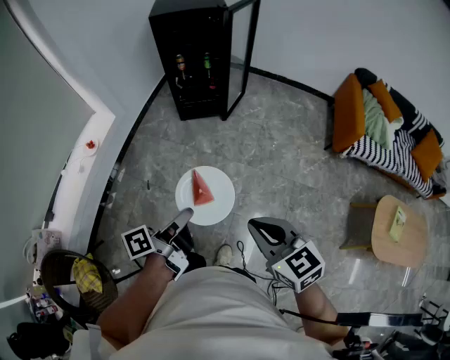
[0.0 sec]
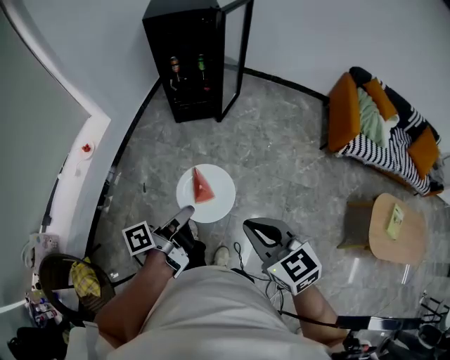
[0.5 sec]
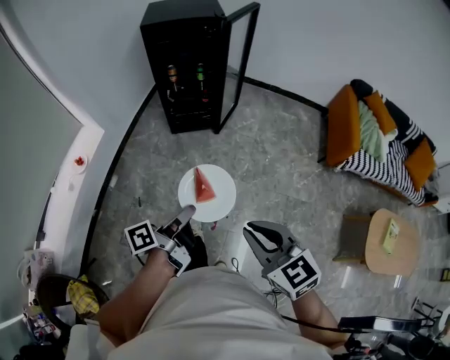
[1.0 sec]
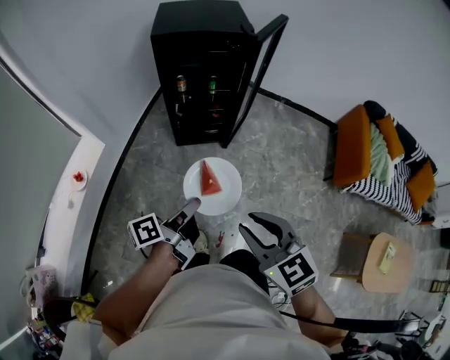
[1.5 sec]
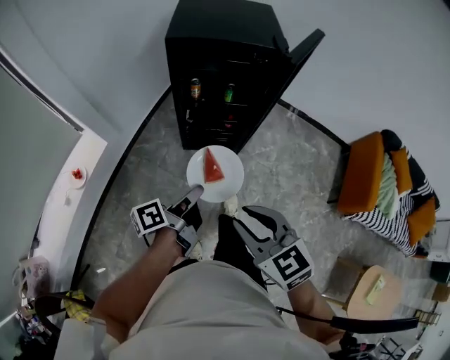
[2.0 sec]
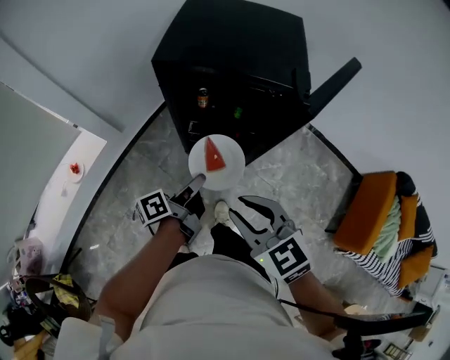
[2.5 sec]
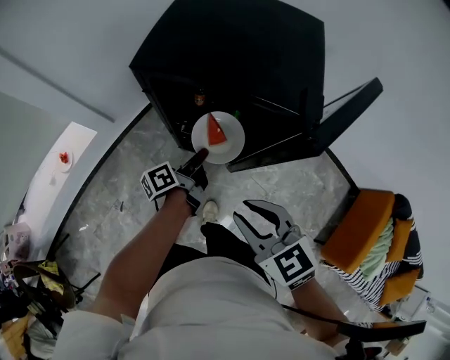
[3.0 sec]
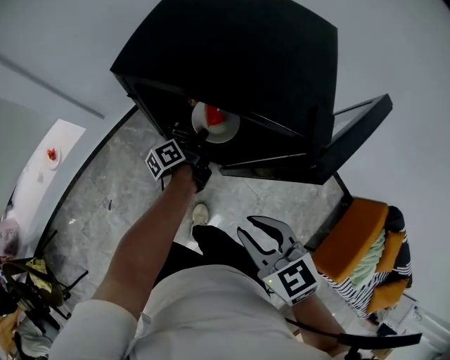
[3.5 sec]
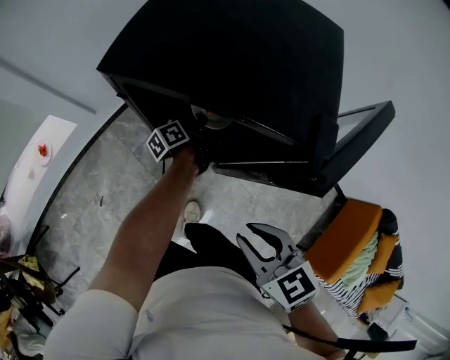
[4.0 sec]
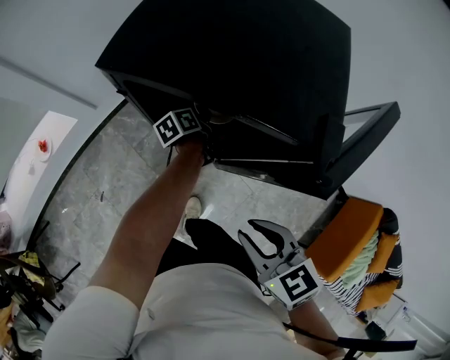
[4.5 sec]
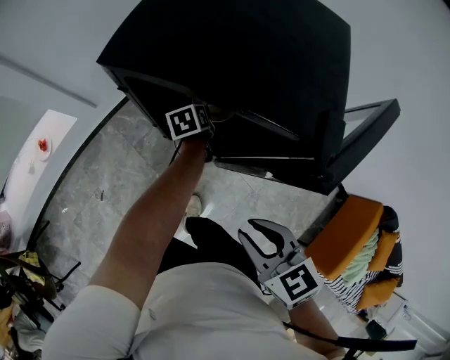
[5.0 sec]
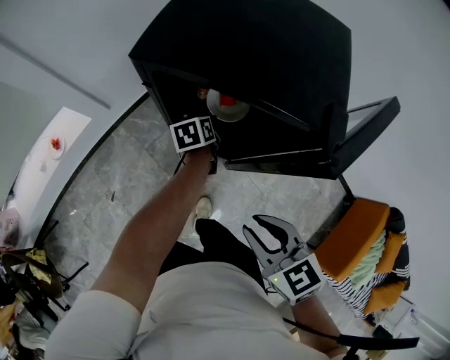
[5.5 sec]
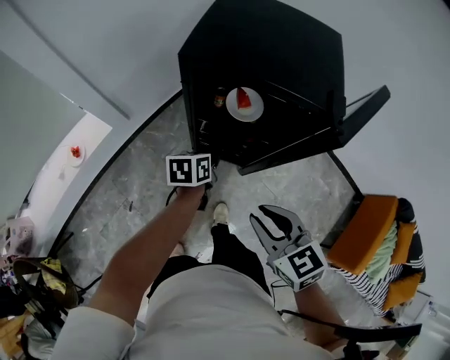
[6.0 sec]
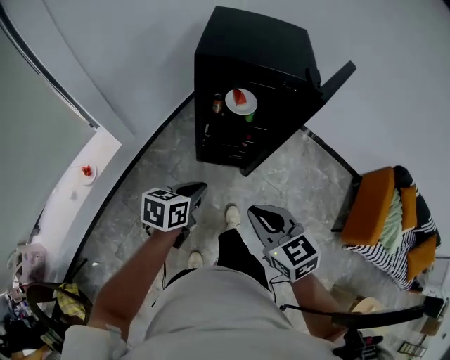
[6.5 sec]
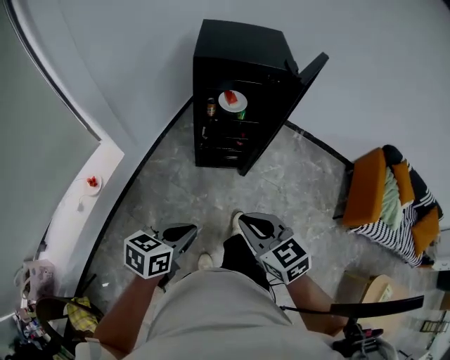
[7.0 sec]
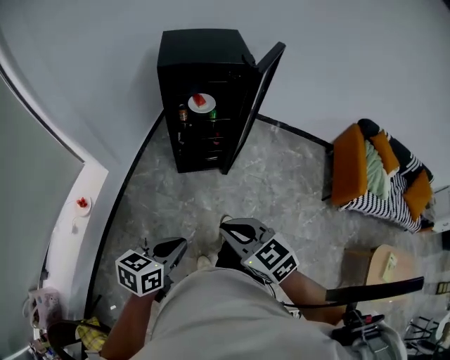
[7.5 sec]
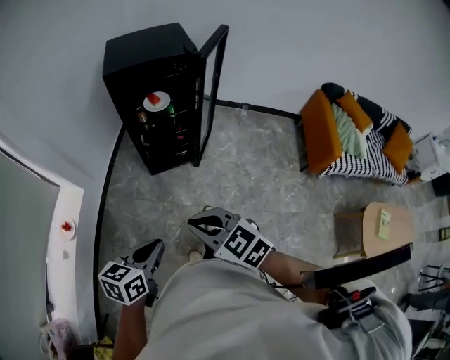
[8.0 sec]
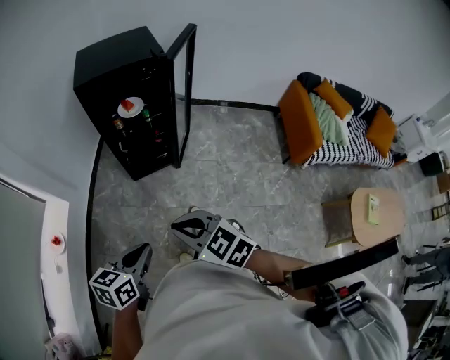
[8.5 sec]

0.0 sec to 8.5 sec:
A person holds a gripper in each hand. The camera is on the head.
0.0 sec to 2.0 sec: Both grippers are carried forward, roughly 50 cm. The right gripper opens.
2.0 sec to 4.0 sec: The left gripper heads forward, downward and to the right, covering roughly 50 cm, and turns by about 30 degrees, while the right gripper goes roughly 30 cm forward and to the right.
4.0 sec to 6.5 sec: The right gripper moves about 25 cm, while the left gripper changes place by some 50 cm, rolls clockwise, seen from behind, by about 60 degrees, and opens and closes again.
6.5 sec to 8.5 sec: The two grippers go roughly 25 cm backward.

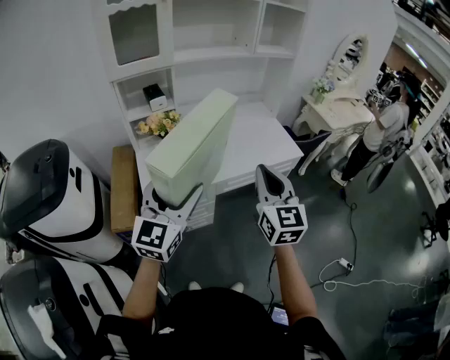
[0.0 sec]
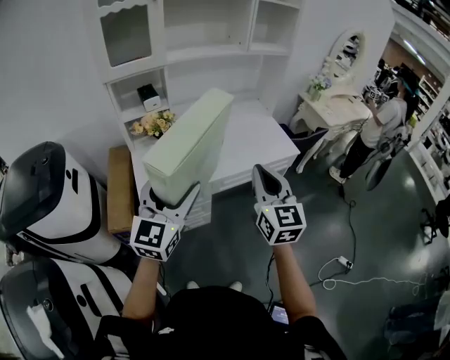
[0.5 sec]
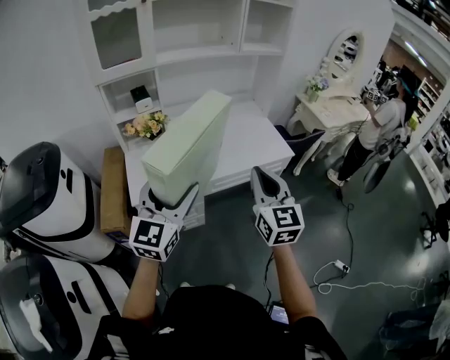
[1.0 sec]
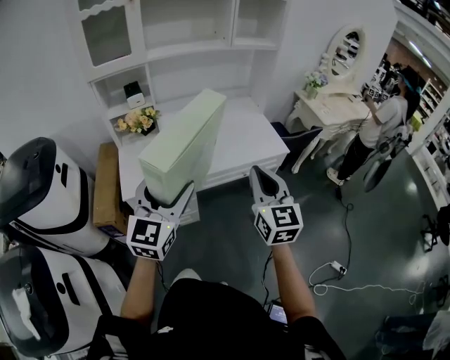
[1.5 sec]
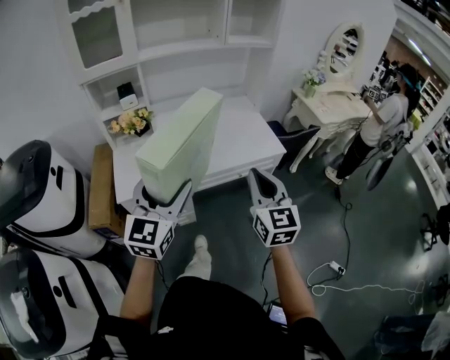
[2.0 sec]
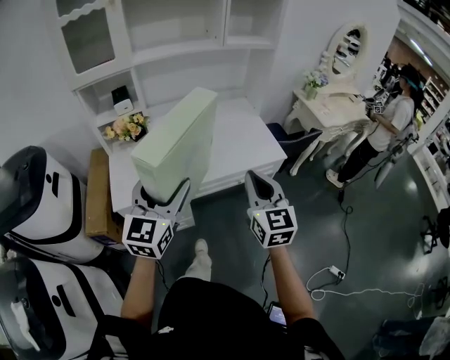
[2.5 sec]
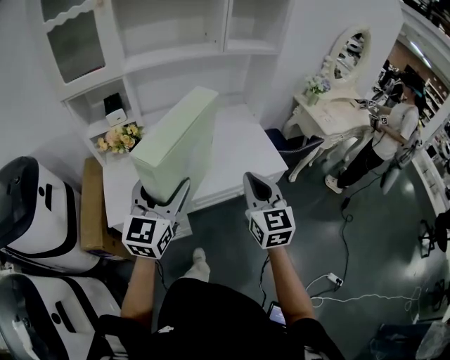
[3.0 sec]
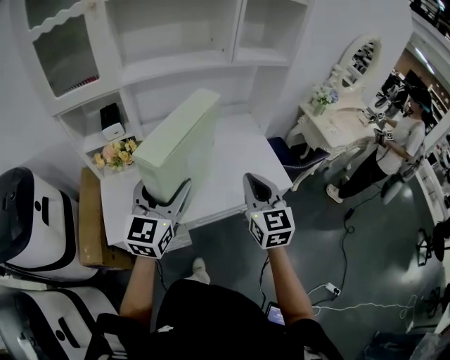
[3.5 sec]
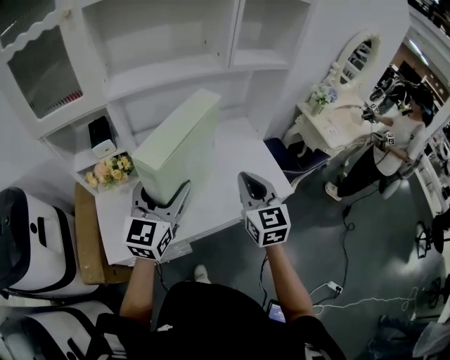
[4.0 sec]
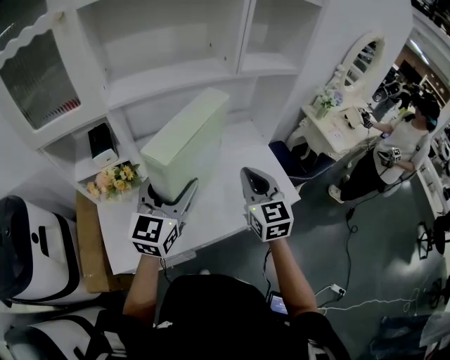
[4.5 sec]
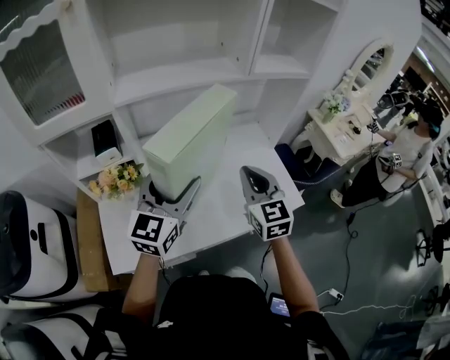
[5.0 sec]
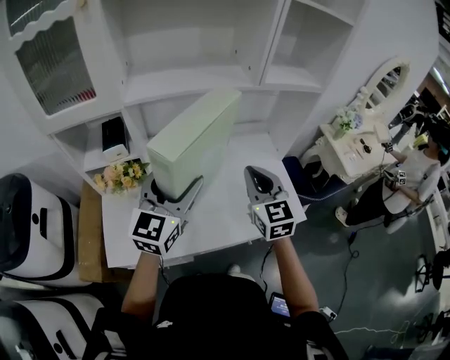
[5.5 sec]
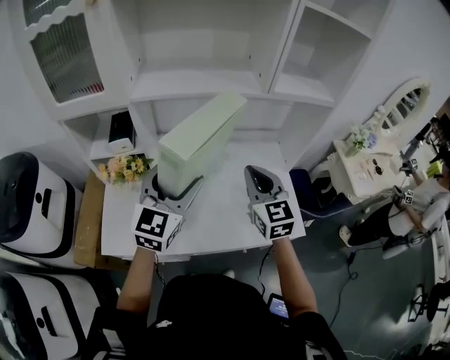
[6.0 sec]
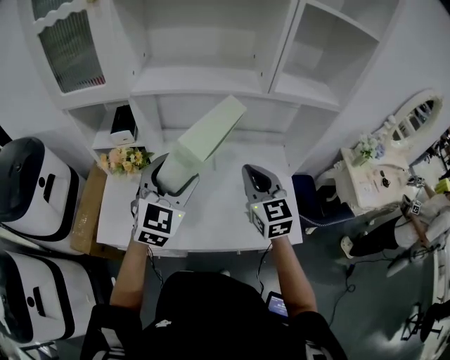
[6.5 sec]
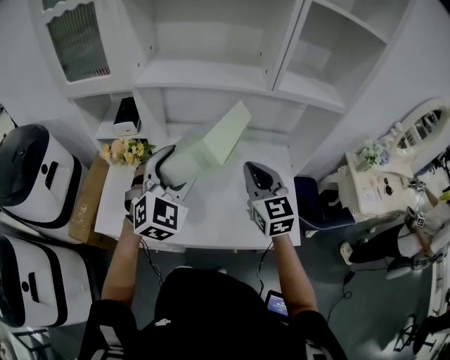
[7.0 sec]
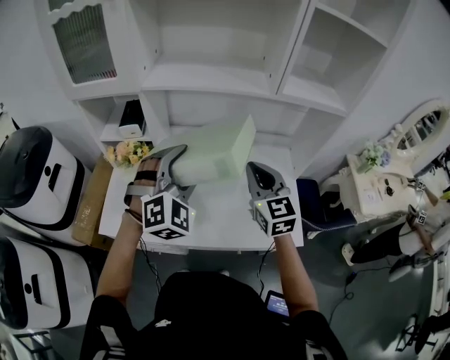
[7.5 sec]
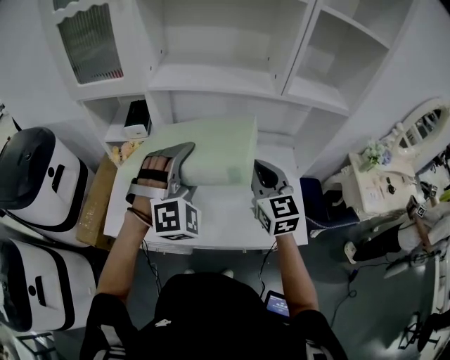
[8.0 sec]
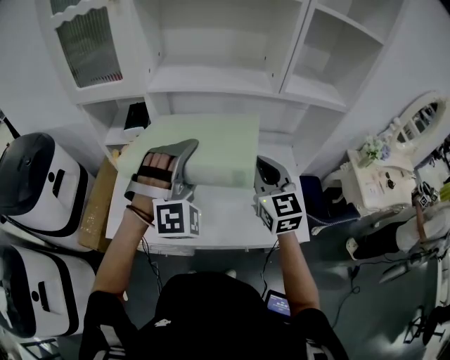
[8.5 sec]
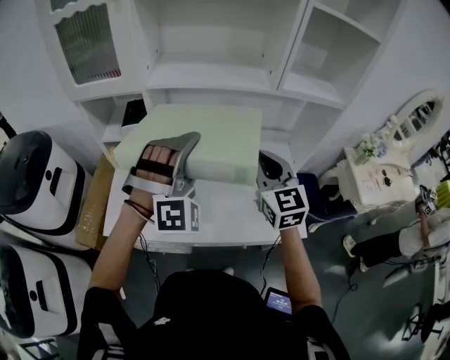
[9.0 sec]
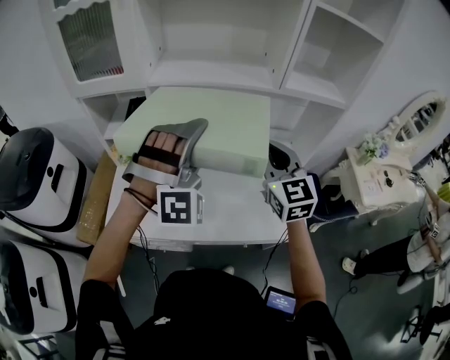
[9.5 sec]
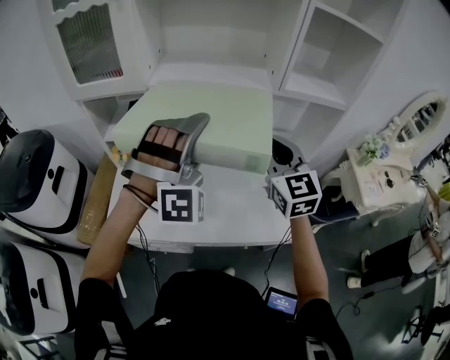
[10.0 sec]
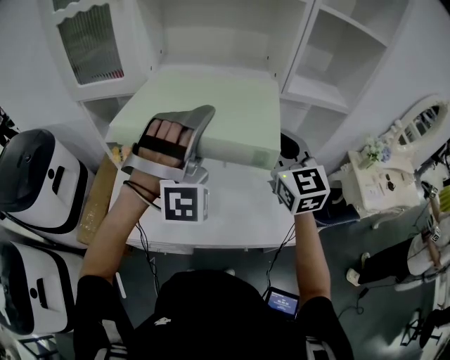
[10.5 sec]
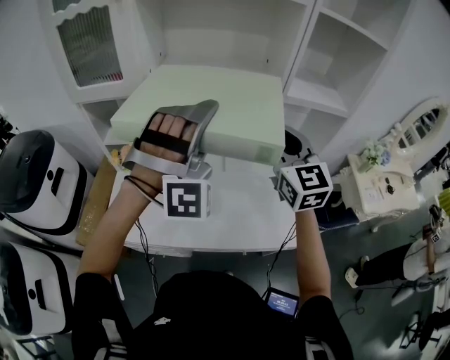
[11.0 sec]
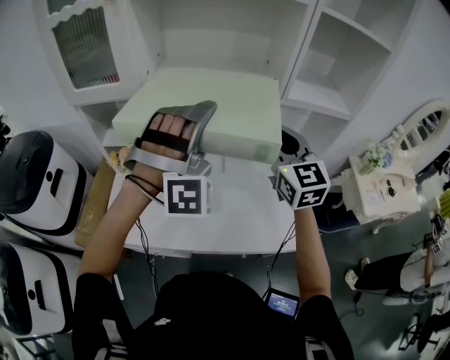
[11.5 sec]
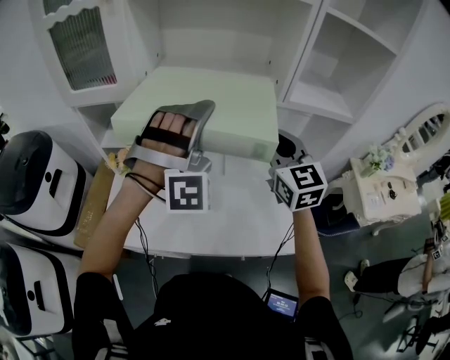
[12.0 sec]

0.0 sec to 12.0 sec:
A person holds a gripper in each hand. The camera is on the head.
0.0 sec to 2.0 sec: Both grippers move to the right, approximately 15 cm.
2.0 sec to 4.0 sec: The two grippers go approximately 30 cm forward.
4.0 sec to 6.0 sec: The two grippers go approximately 10 cm forward.
6.0 sec to 8.0 sec: The left gripper twists some 60 degrees clockwise, seen from behind.
8.0 sec to 10.0 sec: The two grippers go about 10 cm upward. The left gripper turns by about 20 degrees.
10.0 sec to 12.0 sec: Both grippers move forward, approximately 5 cm.

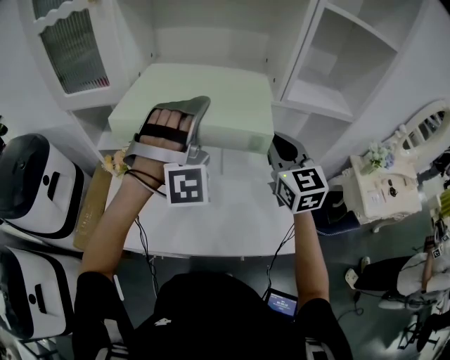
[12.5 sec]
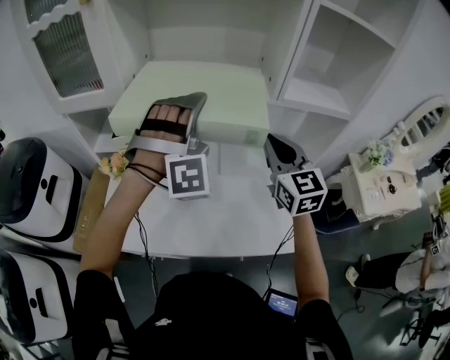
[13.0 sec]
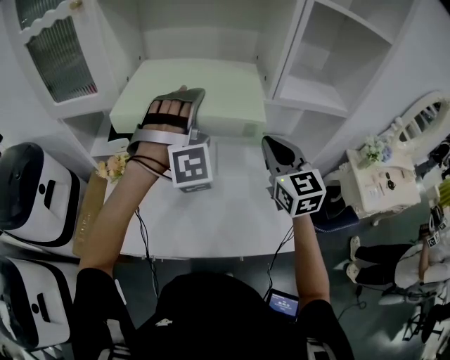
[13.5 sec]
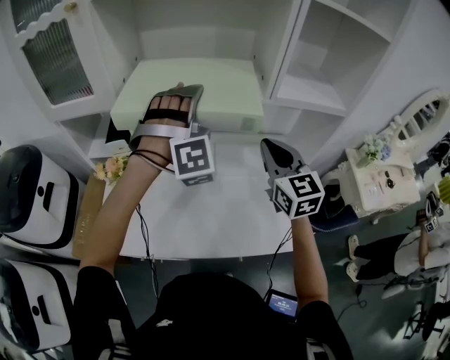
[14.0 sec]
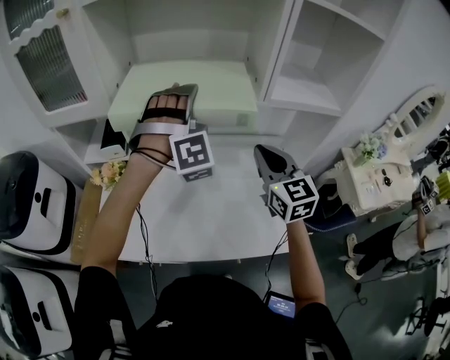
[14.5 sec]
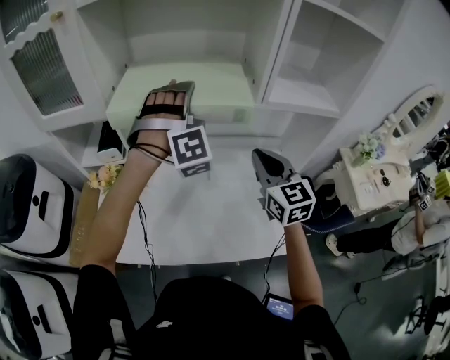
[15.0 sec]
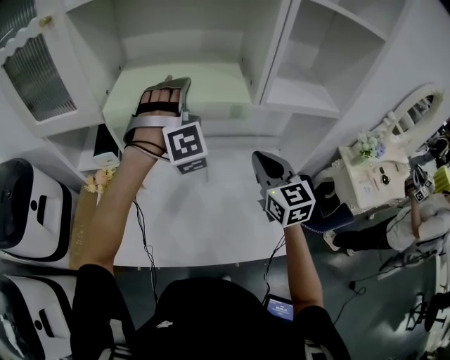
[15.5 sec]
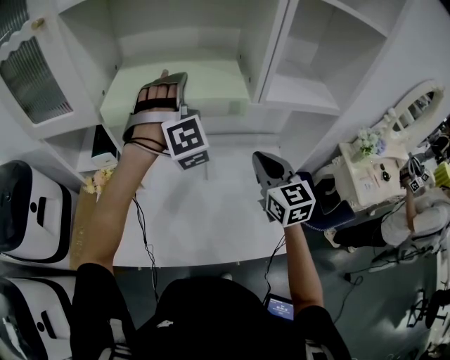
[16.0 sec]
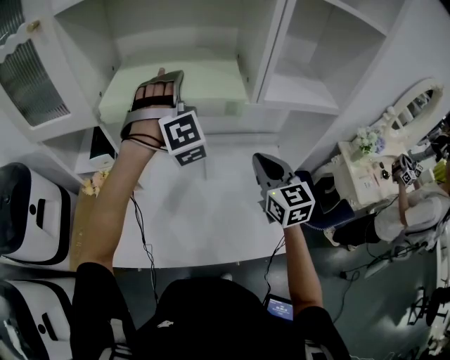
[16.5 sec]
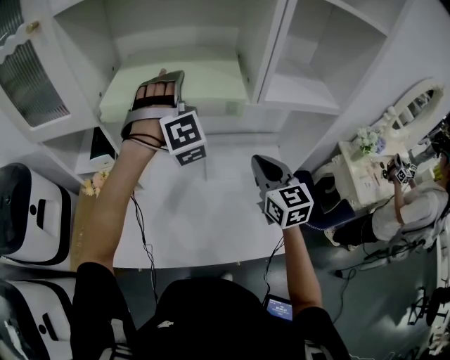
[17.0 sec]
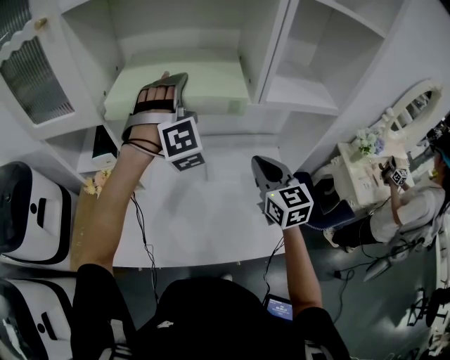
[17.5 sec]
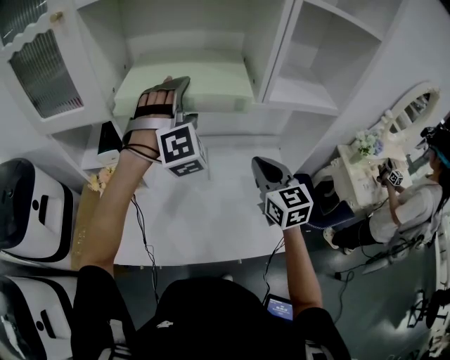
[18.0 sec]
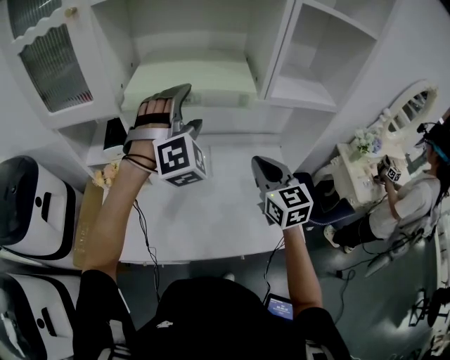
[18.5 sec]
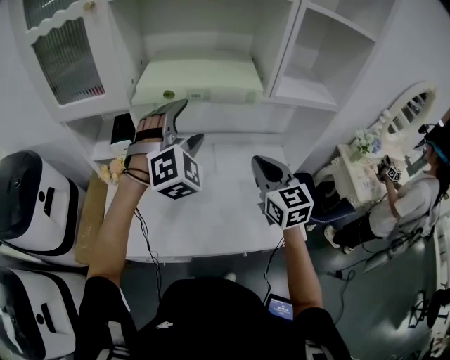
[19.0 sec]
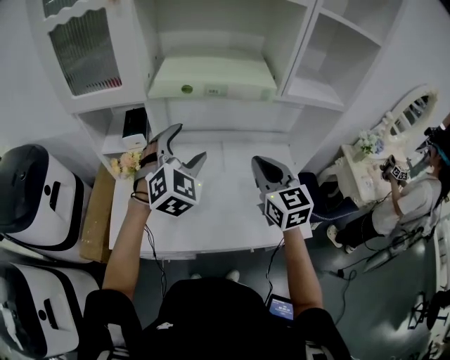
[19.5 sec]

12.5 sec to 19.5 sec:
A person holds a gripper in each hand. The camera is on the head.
12.5 sec to 14.5 sec: The left gripper travels forward by roughly 10 cm.
14.5 sec to 16.0 sec: The left gripper heads forward, covering about 5 cm.
16.0 sec to 17.5 sec: The grippers make only small movements.
17.5 sec to 19.5 sec: The left gripper is displaced backward and to the left by roughly 20 cm, and turns by about 40 degrees. The right gripper travels to the left and backward by roughly 15 cm.
